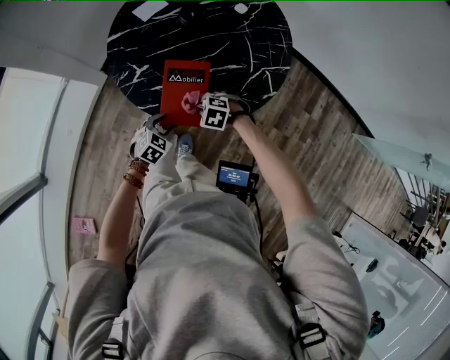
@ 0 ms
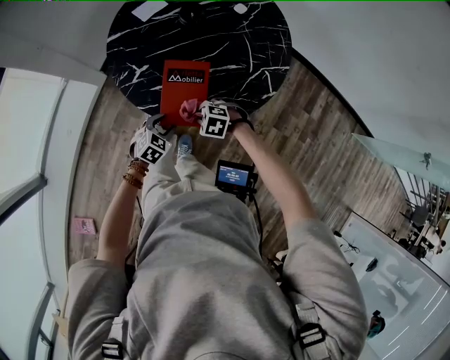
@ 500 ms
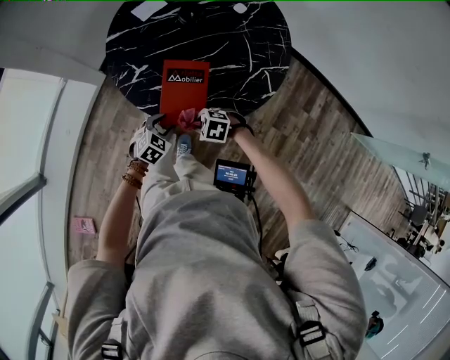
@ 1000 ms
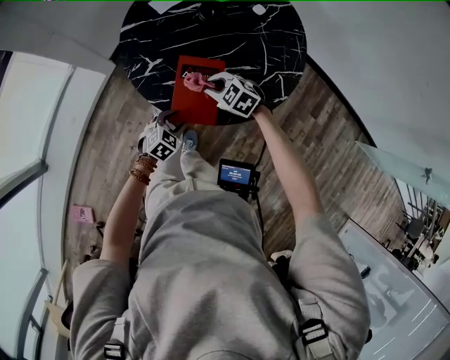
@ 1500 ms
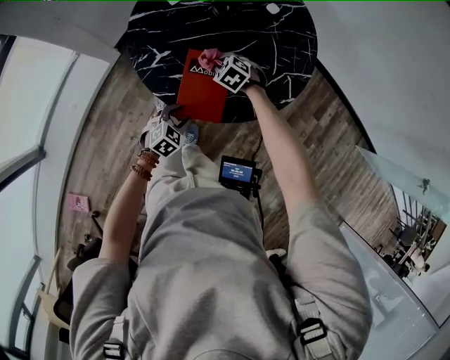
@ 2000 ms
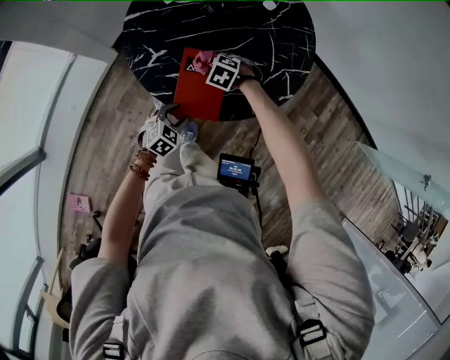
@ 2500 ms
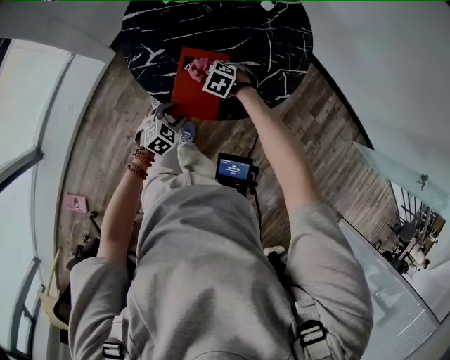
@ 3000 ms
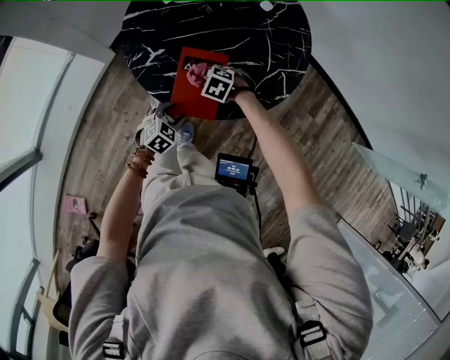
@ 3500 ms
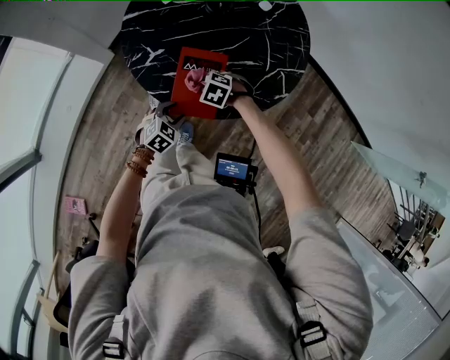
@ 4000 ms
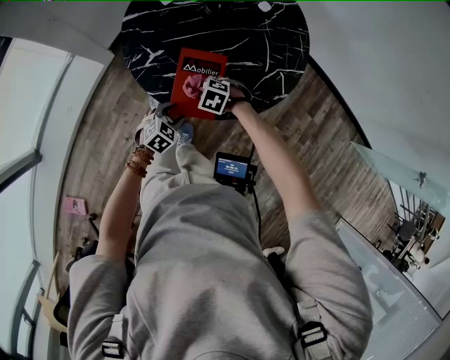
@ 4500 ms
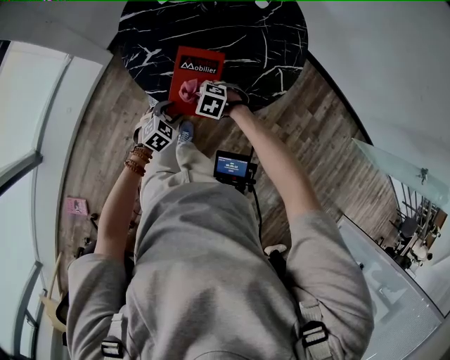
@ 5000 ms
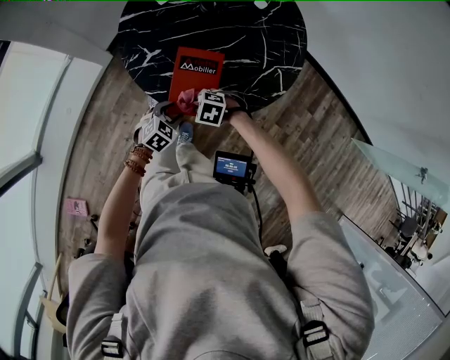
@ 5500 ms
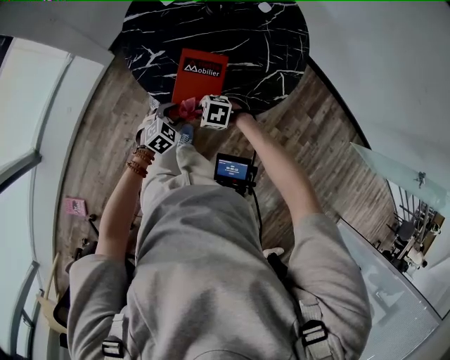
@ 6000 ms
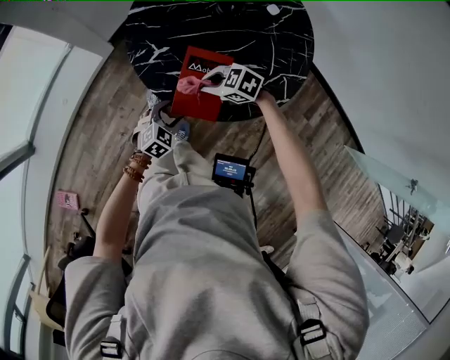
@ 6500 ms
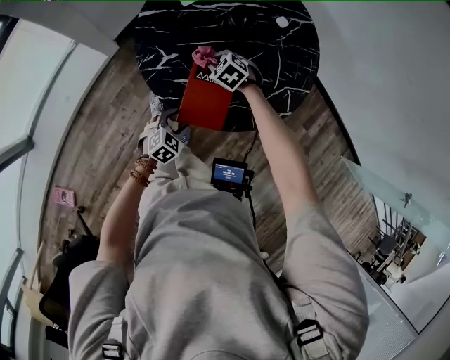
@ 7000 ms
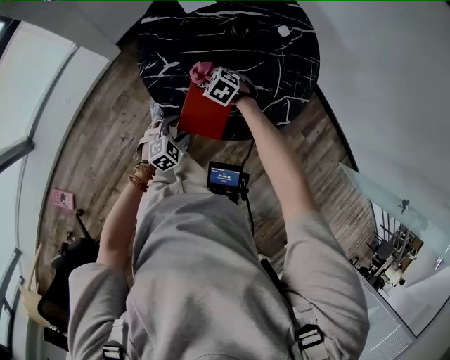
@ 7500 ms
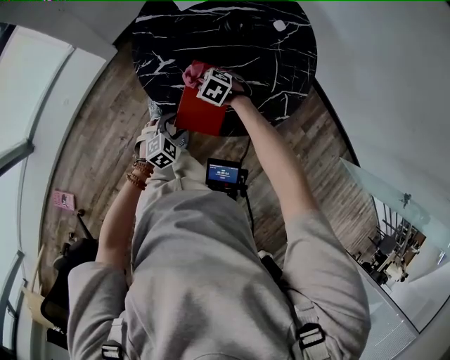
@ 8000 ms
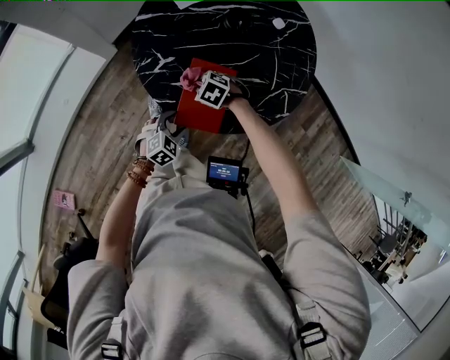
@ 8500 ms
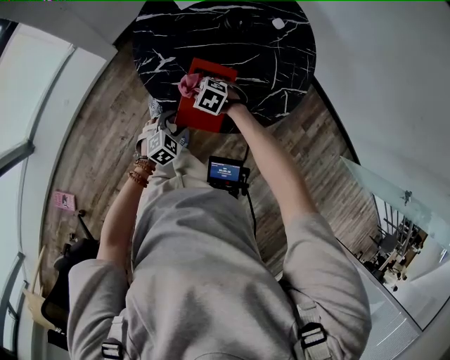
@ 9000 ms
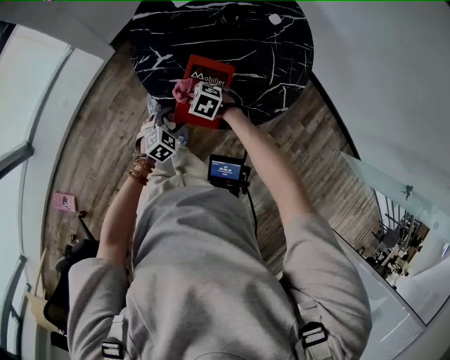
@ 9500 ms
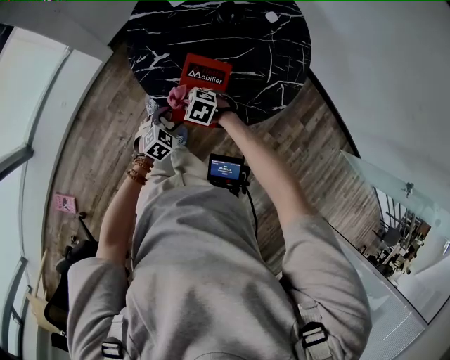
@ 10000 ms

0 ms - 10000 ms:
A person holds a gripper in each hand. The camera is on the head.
0 ms - 2000 ms: The right gripper ends up roughly 15 cm from where it was.
2000 ms - 4000 ms: The right gripper changes place by roughly 10 cm.
4000 ms - 6000 ms: The right gripper moves roughly 10 cm.
6000 ms - 8000 ms: The right gripper changes place by about 15 cm.
8000 ms - 10000 ms: The right gripper shifts by approximately 10 cm.

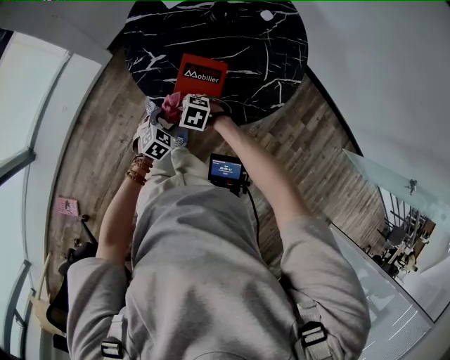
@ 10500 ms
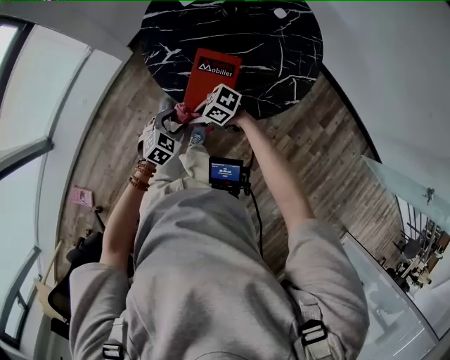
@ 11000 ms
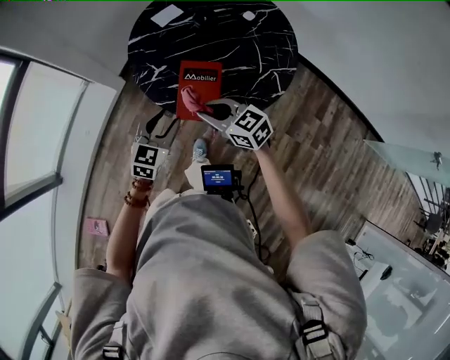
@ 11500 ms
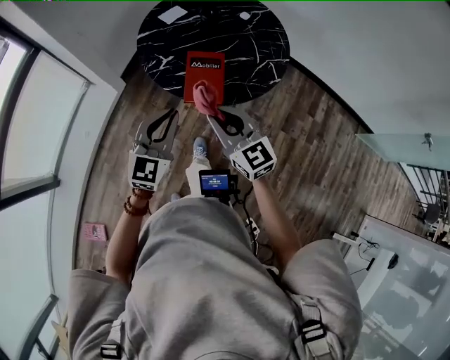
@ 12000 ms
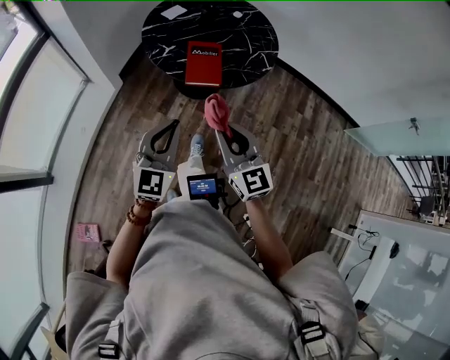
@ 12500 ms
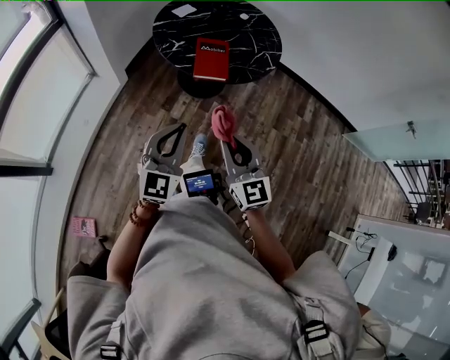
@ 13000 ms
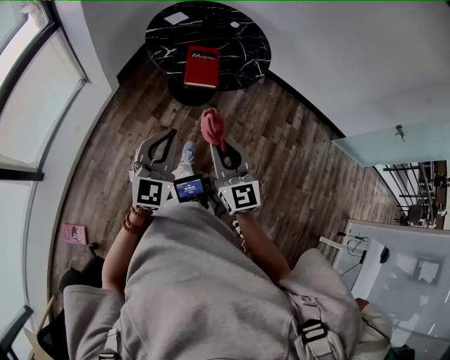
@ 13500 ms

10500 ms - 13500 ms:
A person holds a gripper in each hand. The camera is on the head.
10500 ms - 12000 ms: The two grippers go about 35 cm upward. The left gripper tips its fingers upward by some 40 degrees, and closes its fingers. Meanwhile the right gripper points its fingers about 60 degrees further upward.
12000 ms - 13500 ms: Both grippers move backward, approximately 25 cm.

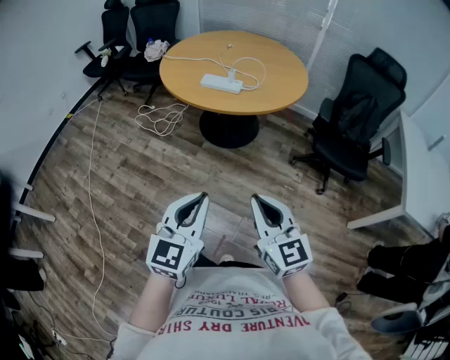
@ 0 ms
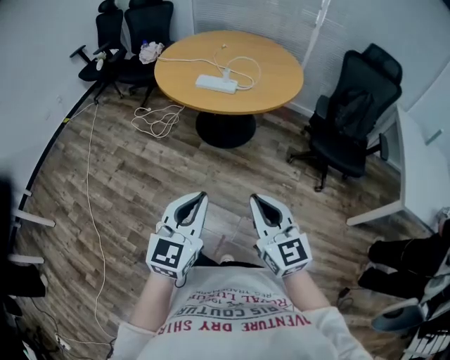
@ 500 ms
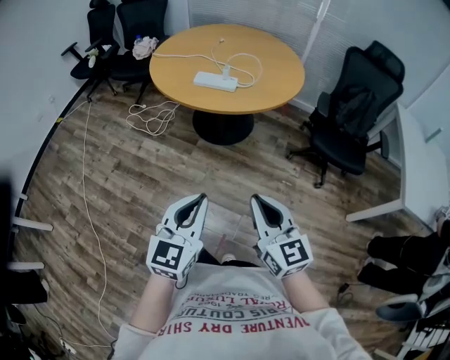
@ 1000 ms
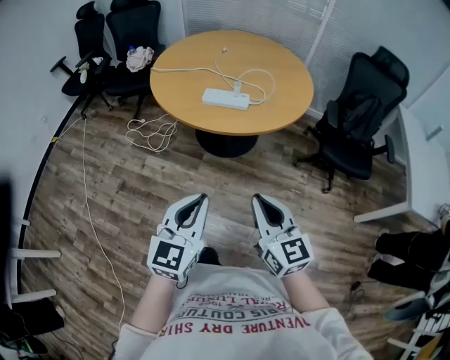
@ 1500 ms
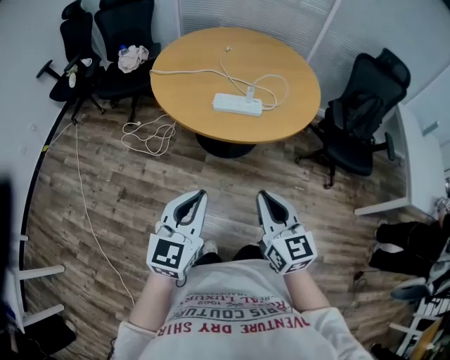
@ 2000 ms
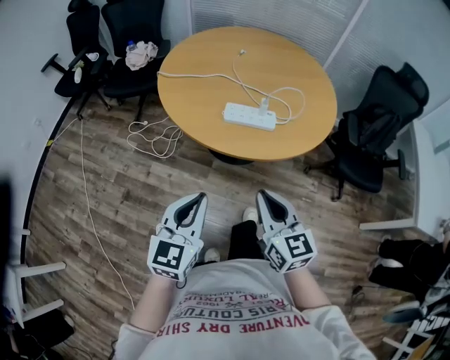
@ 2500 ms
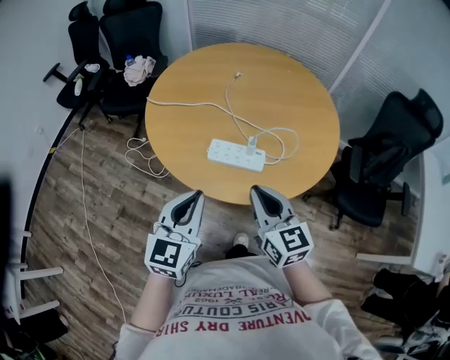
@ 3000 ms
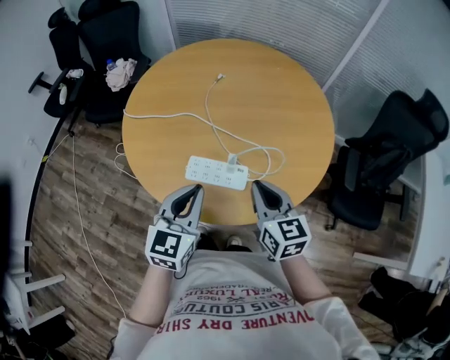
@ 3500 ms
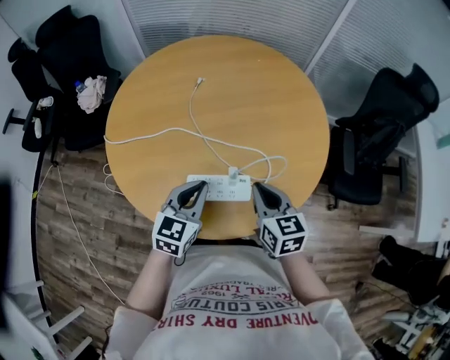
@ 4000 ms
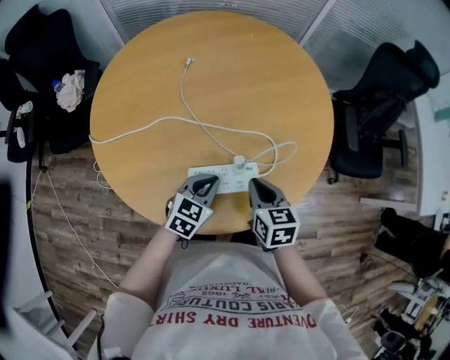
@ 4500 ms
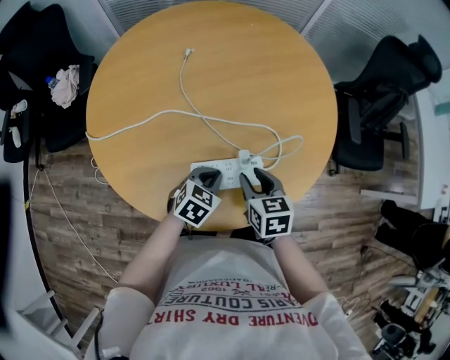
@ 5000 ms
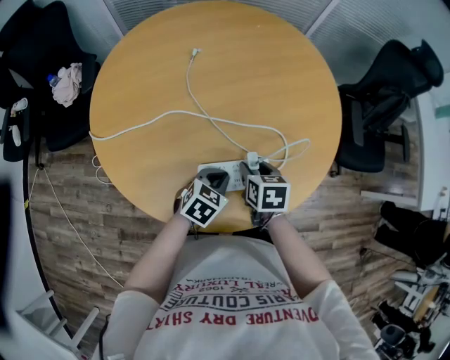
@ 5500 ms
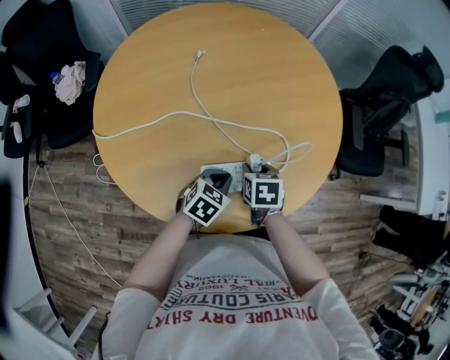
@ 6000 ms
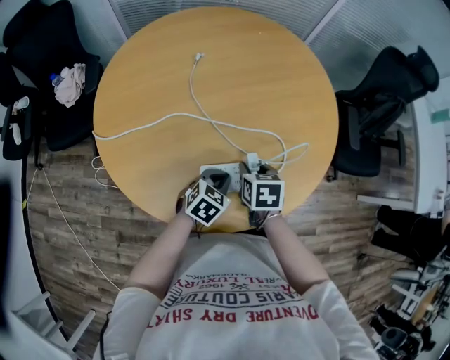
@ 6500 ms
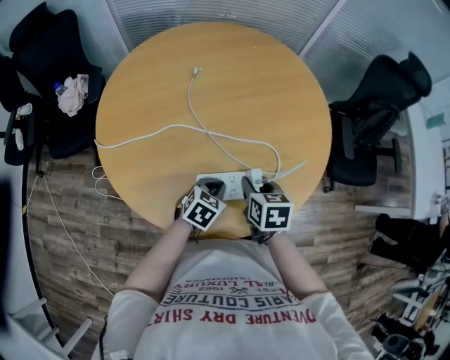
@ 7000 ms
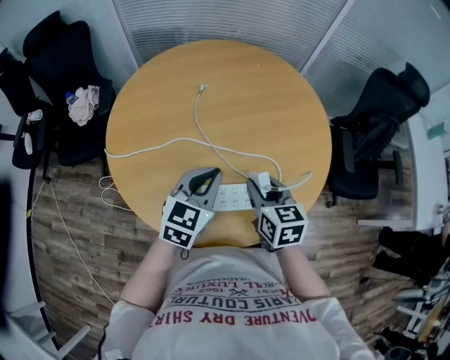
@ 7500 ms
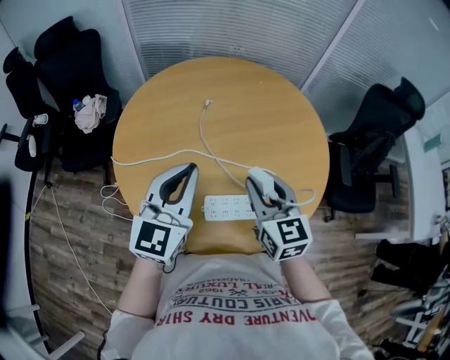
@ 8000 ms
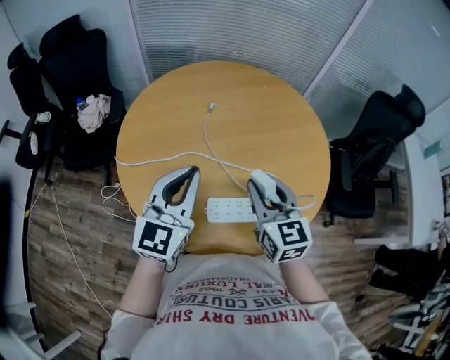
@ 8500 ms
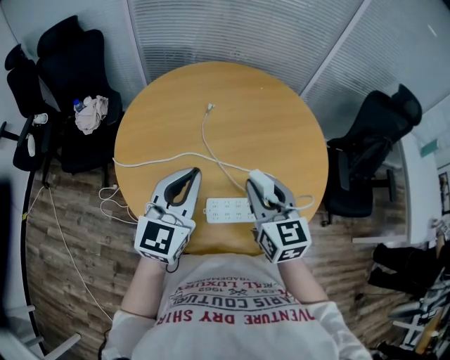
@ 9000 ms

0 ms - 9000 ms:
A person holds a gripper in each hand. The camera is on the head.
0 ms - 2000 ms: Both grippers move forward and to the left, roughly 30 cm.
2000 ms - 4500 ms: The pair of grippers is taken some 40 cm. The left gripper turns by about 40 degrees. Meanwhile the right gripper rotates roughly 30 degrees.
4500 ms - 7000 ms: The right gripper goes downward and returns, about 10 cm each way, and opens.
7000 ms - 9000 ms: The right gripper goes roughly 20 cm upward, and tips its fingers upward by about 30 degrees, while the left gripper heads upward, covering some 30 cm, and angles its fingers upward, by approximately 50 degrees.

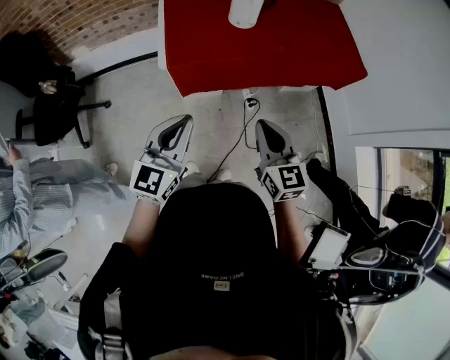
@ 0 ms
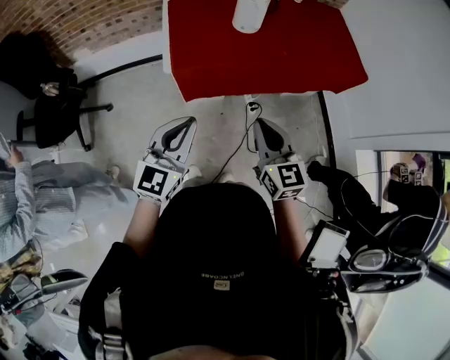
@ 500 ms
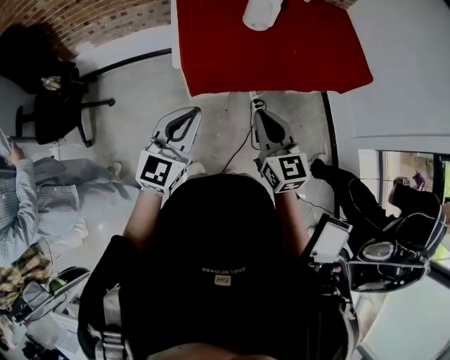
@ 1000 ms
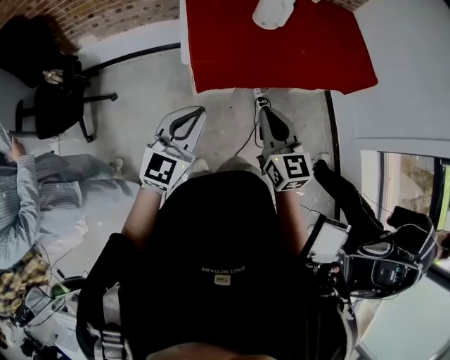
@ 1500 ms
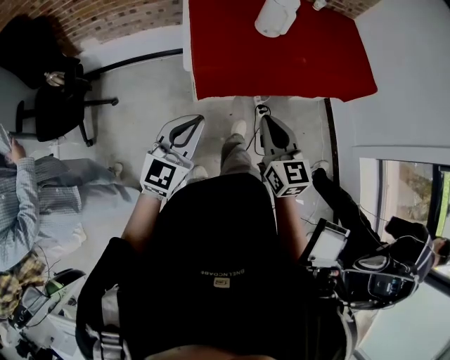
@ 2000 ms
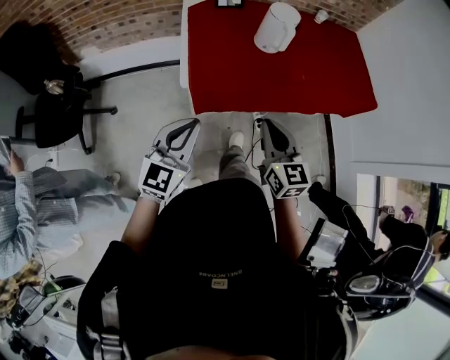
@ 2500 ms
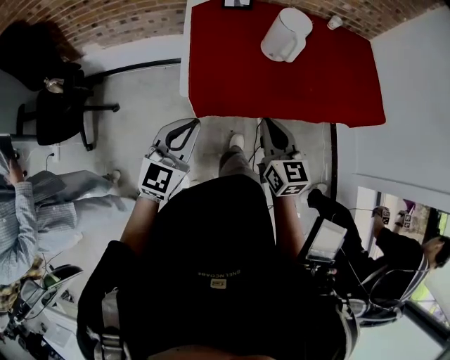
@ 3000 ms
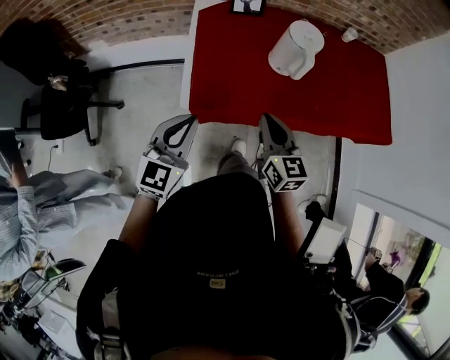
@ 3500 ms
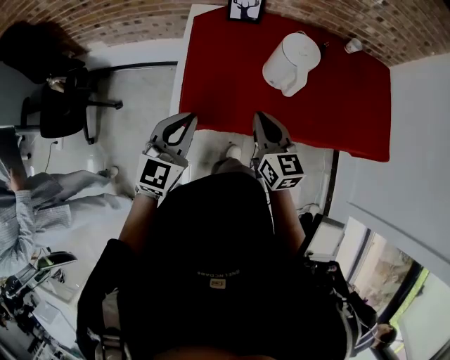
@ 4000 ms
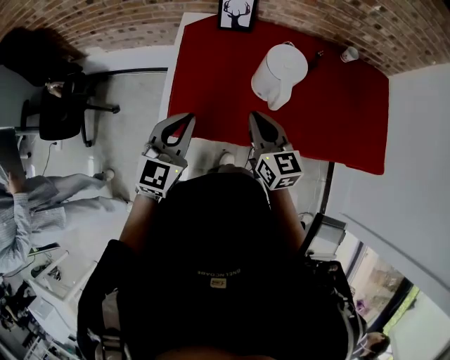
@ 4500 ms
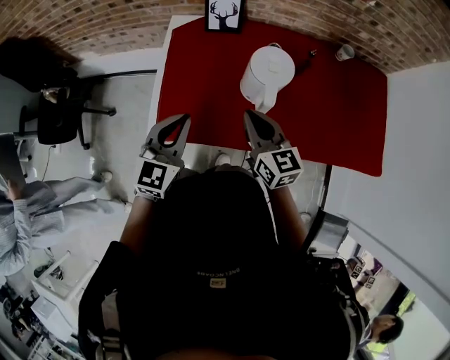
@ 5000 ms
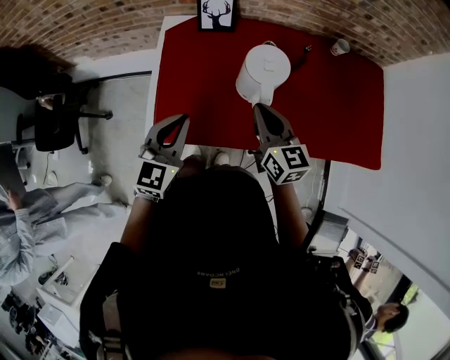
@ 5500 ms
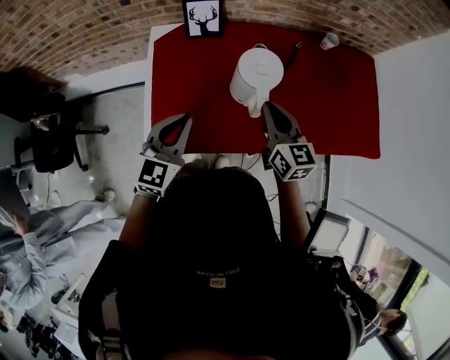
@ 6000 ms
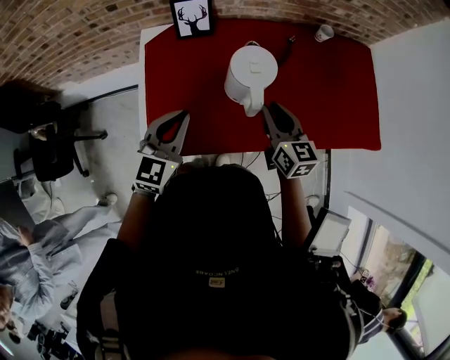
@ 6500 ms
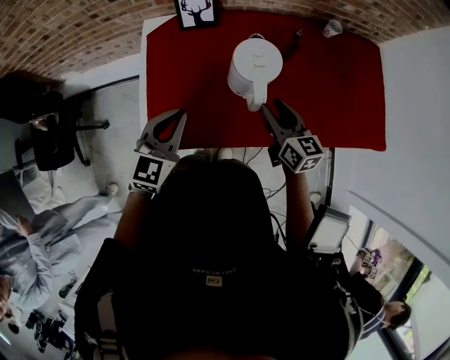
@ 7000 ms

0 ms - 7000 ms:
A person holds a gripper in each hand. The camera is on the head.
0 ms - 2000 ms: The two grippers go roughly 10 cm to the left.
2000 ms - 3500 ms: The two grippers go some 25 cm forward.
3500 ms - 5000 ms: Both grippers move forward and to the right, about 20 cm.
5000 ms - 7000 ms: The left gripper changes place by about 5 cm; the right gripper moves to the right and downward, some 10 cm, and opens up.
